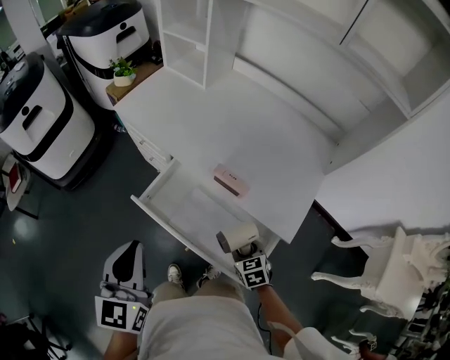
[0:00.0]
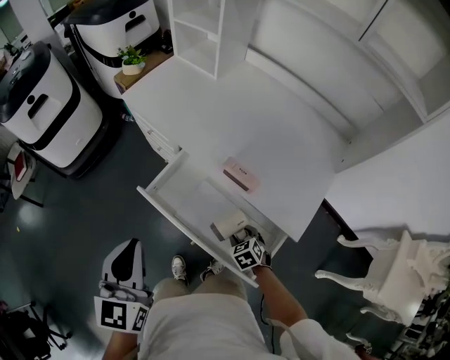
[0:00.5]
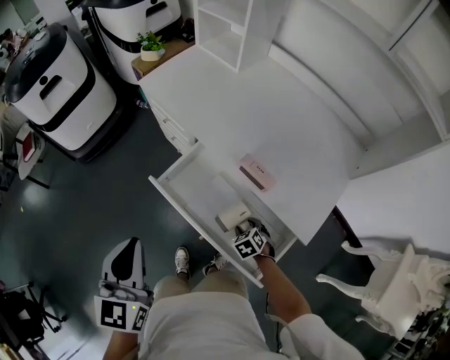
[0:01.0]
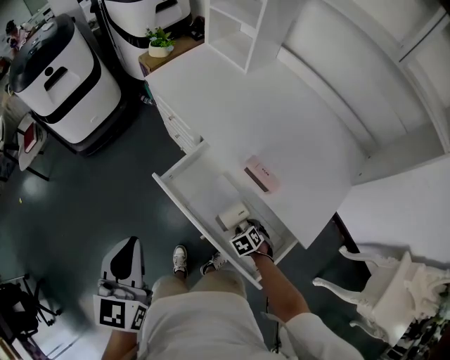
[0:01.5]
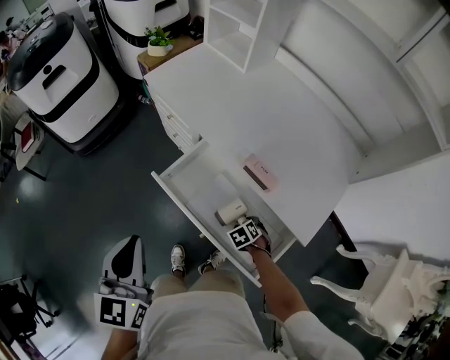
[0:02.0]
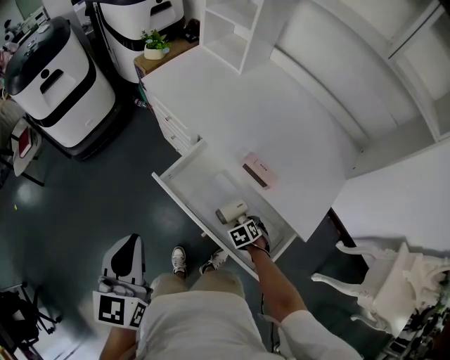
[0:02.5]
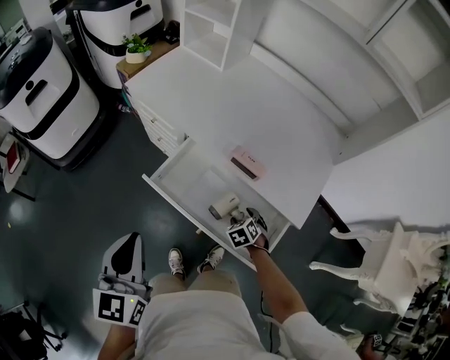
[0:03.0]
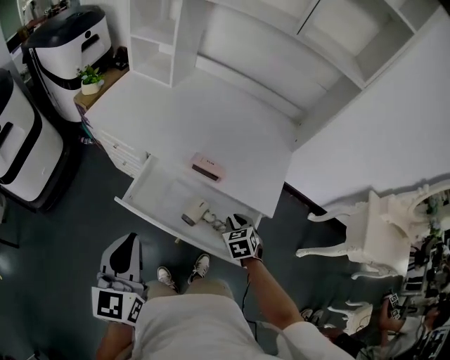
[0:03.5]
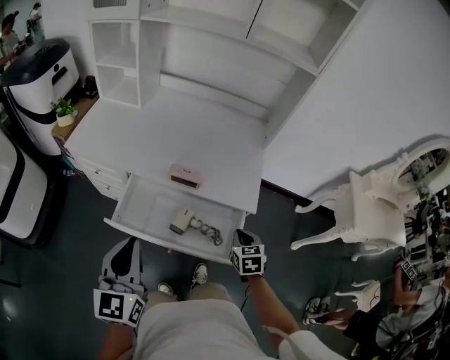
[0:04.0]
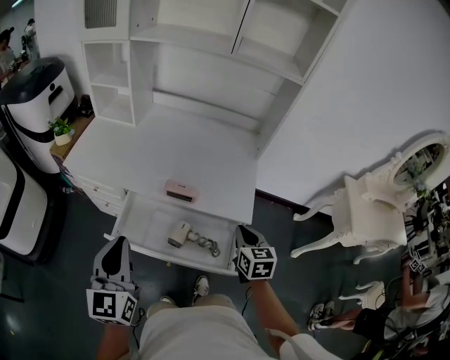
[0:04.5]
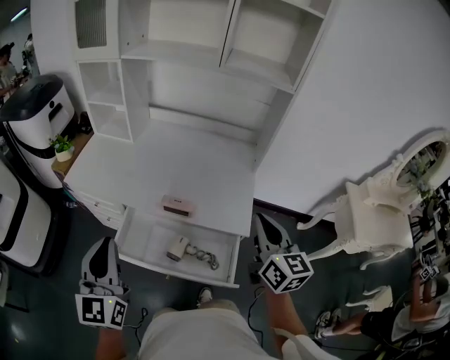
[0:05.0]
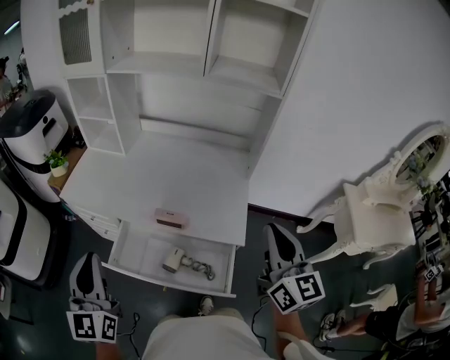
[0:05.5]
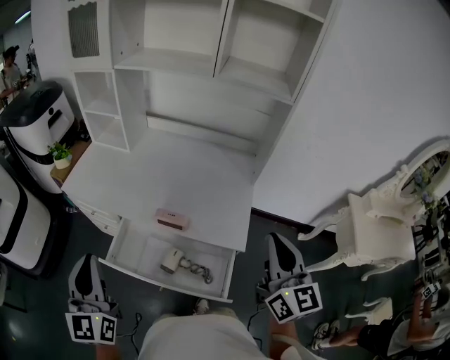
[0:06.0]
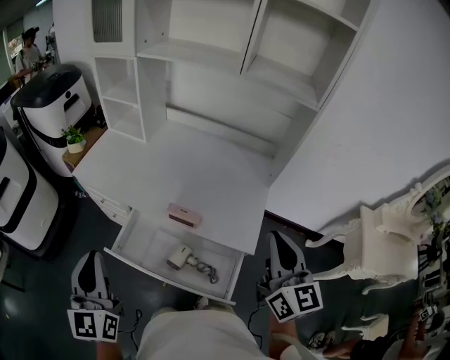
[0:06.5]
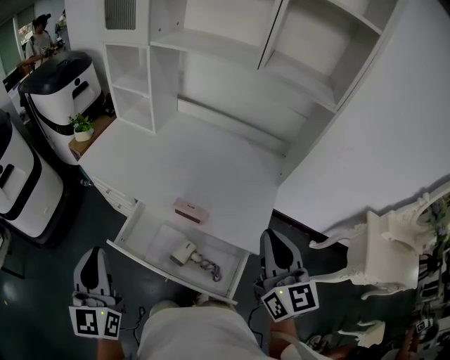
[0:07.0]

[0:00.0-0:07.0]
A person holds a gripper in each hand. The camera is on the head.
0:00.0 to 0:02.0: The right gripper goes about 15 cm downward, and rotates roughly 30 degrees; the left gripper shifts by some 5 cm.
0:02.0 to 0:03.5: The left gripper changes its angle by about 20 degrees. The right gripper is displaced upward by approximately 15 cm, changes its angle by about 40 degrees, and closes.
0:03.5 to 0:05.0: The right gripper heads upward, covering about 35 cm, and angles its fingers upward, by approximately 50 degrees. Meanwhile the left gripper shifts roughly 10 cm upward and forward.

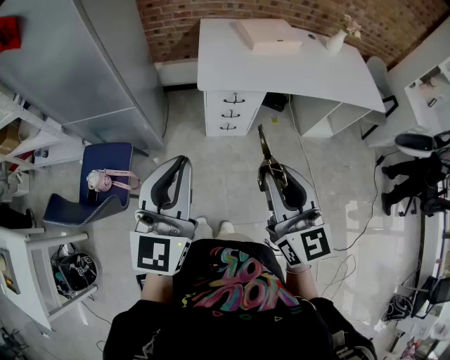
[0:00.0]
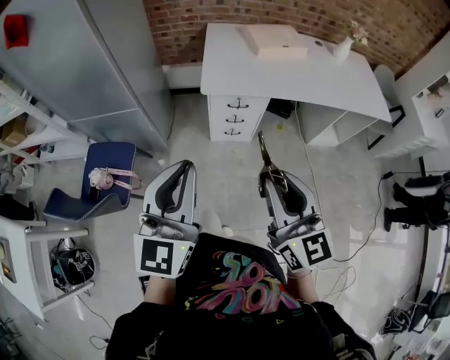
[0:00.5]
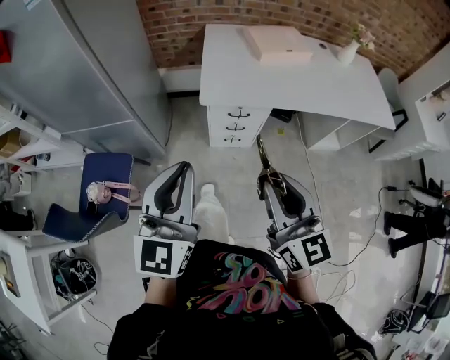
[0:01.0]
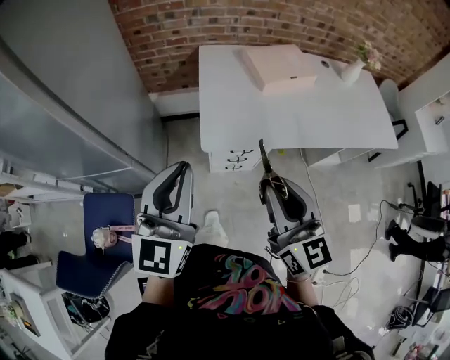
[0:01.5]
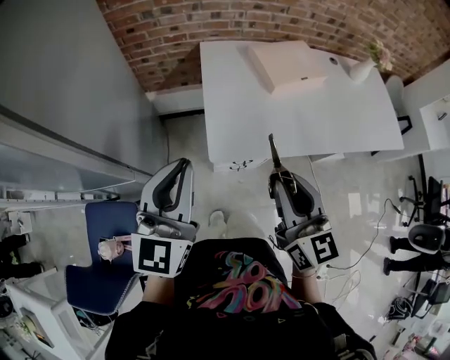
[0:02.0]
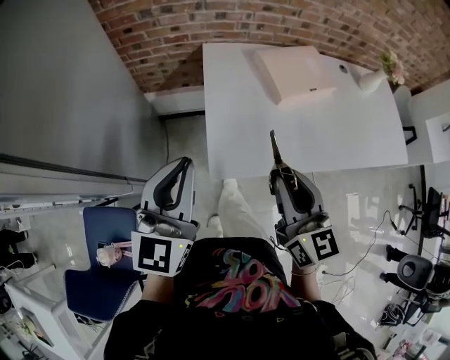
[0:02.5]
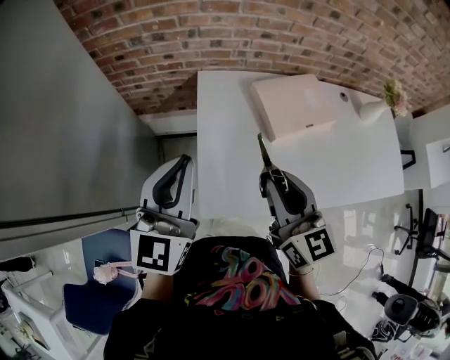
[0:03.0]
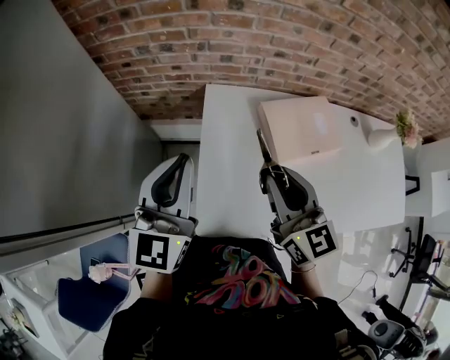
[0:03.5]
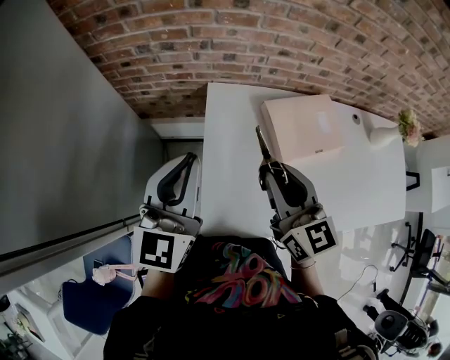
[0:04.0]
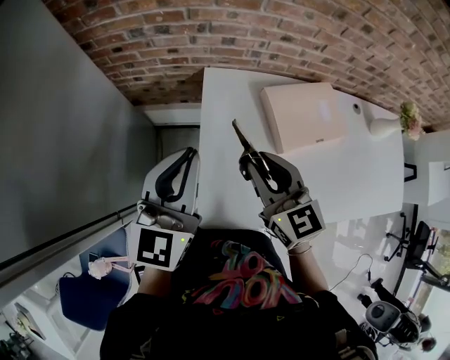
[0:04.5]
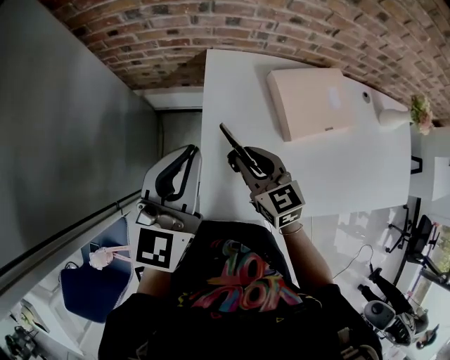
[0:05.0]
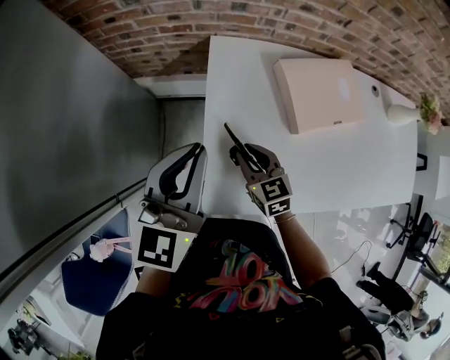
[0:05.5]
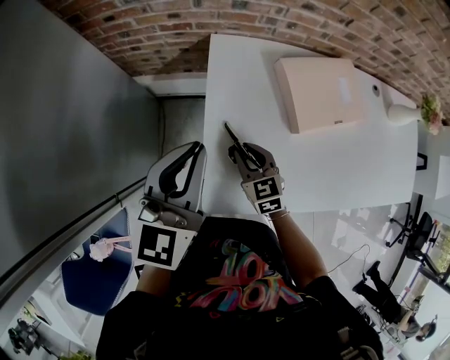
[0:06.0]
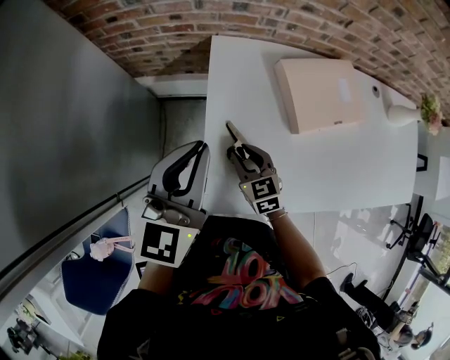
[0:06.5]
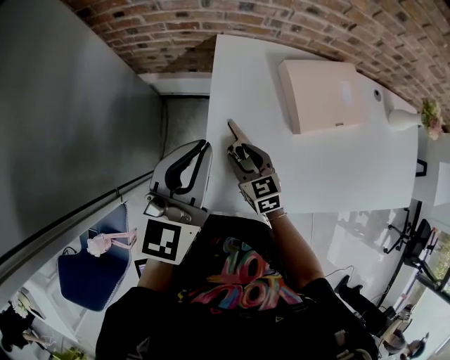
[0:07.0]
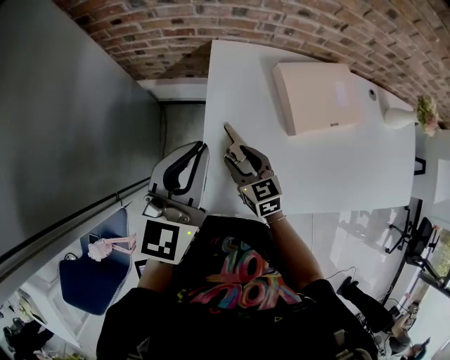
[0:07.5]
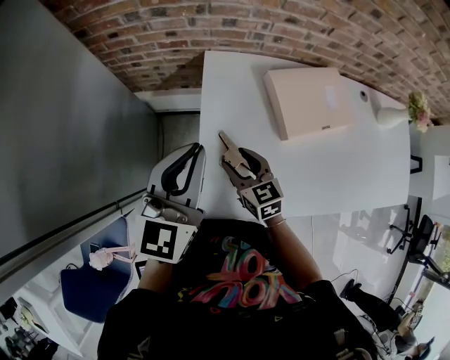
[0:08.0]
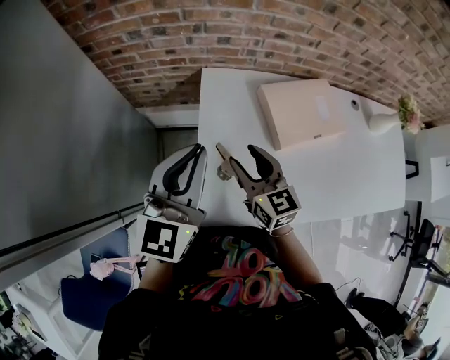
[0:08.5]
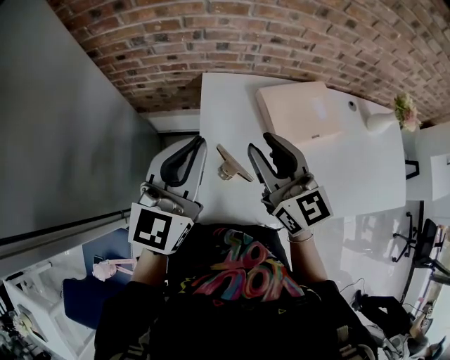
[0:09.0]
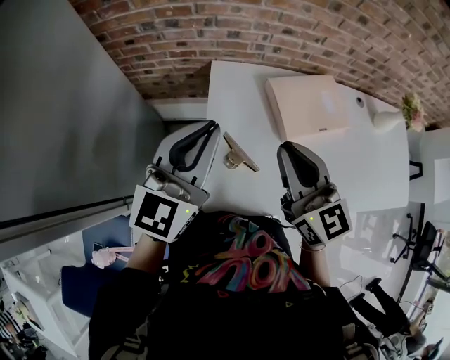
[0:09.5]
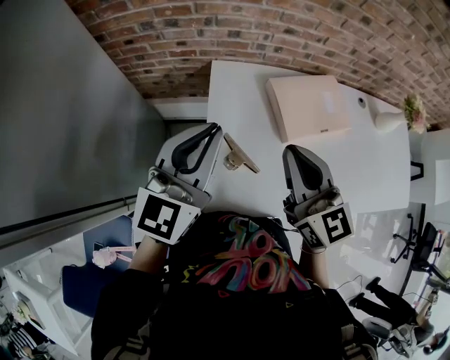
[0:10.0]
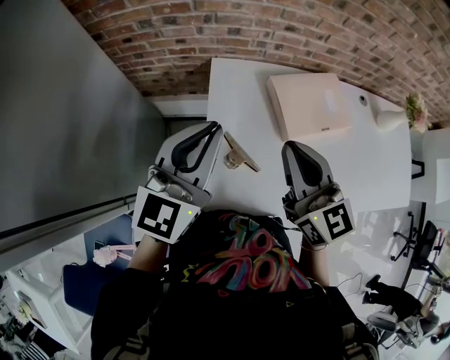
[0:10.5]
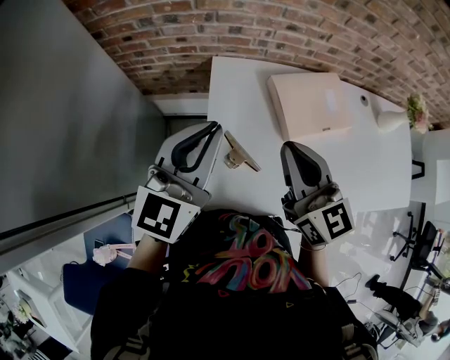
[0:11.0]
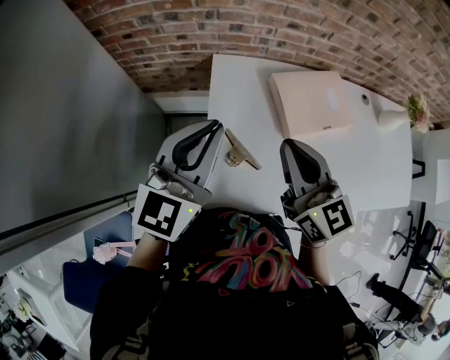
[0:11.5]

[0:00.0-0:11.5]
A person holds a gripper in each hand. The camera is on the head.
0:00.0 to 0:02.0: The pair of grippers is taken forward, approximately 40 cm.
0:02.0 to 0:04.0: Both grippers move forward, approximately 35 cm.
0:04.0 to 0:06.0: The left gripper shifts approximately 10 cm downward. The right gripper travels downward by some 30 cm, and rotates roughly 30 degrees.
0:06.0 to 0:07.5: The right gripper opens its fingers.
0:07.5 to 0:09.5: The left gripper is displaced upward by some 10 cm, while the right gripper goes some 30 cm upward, turns by approximately 30 degrees, and closes its fingers.
0:09.5 to 0:11.5: The grippers stay close to where they were, moving slightly.

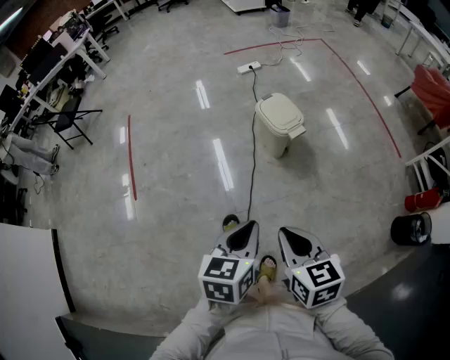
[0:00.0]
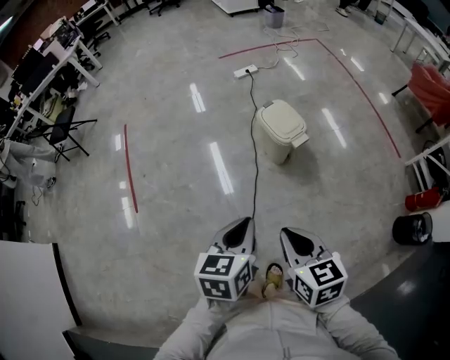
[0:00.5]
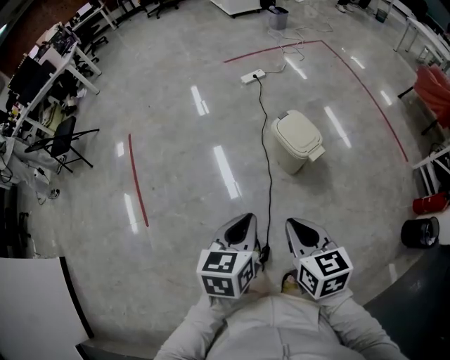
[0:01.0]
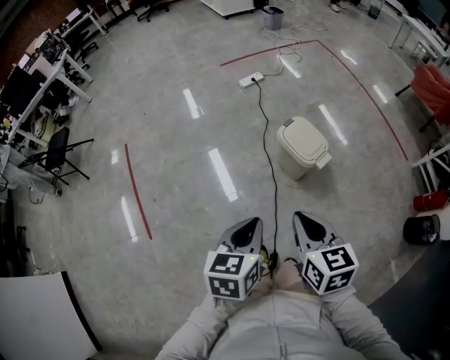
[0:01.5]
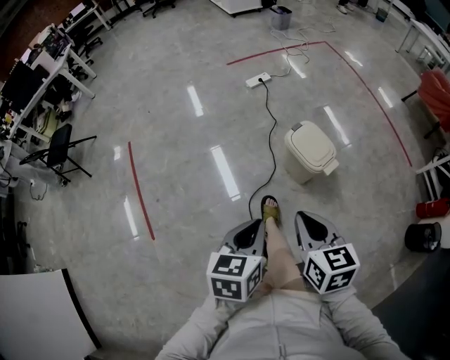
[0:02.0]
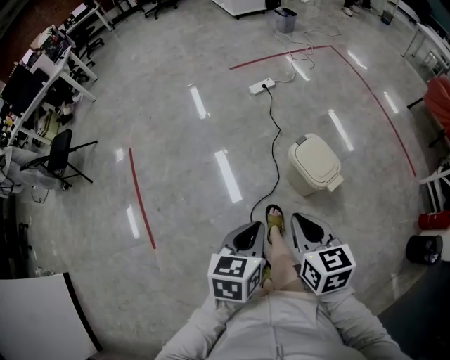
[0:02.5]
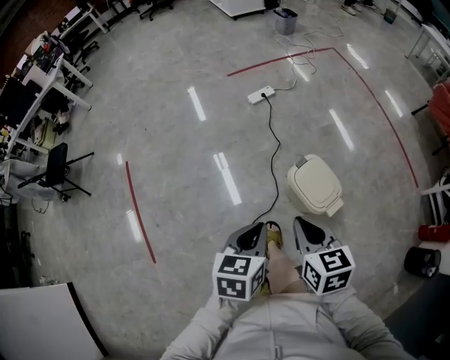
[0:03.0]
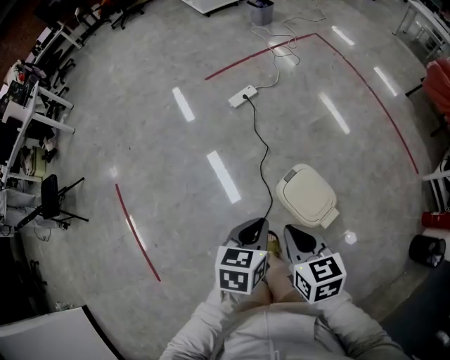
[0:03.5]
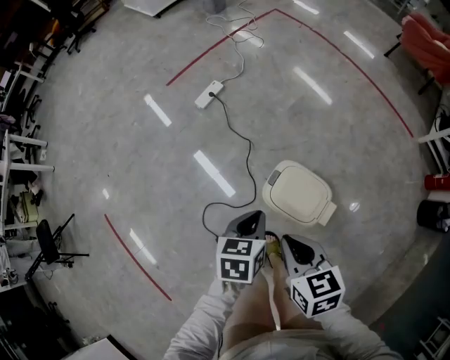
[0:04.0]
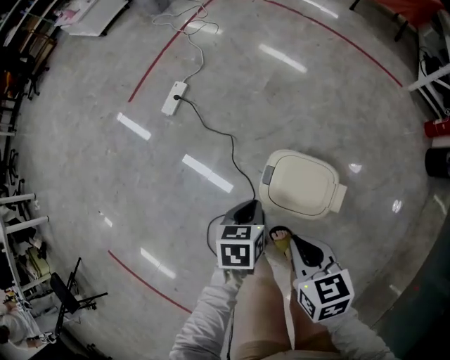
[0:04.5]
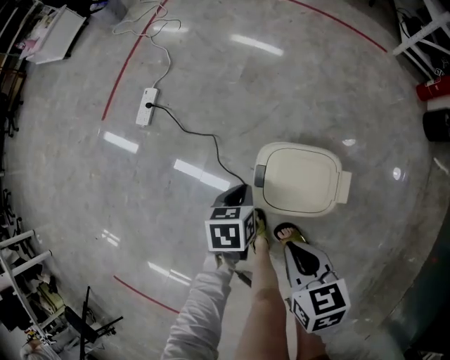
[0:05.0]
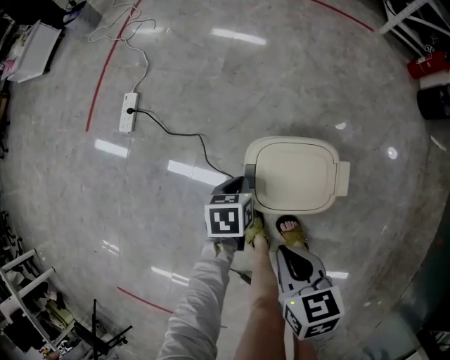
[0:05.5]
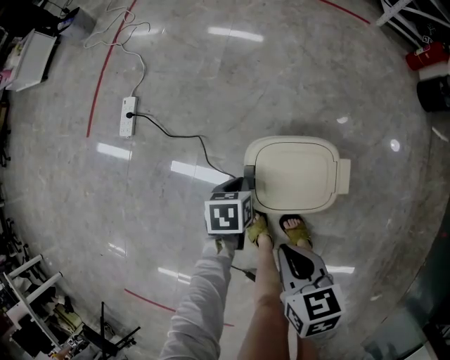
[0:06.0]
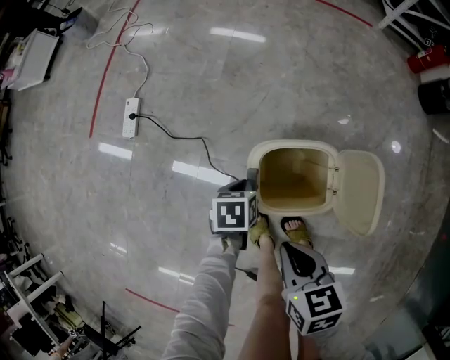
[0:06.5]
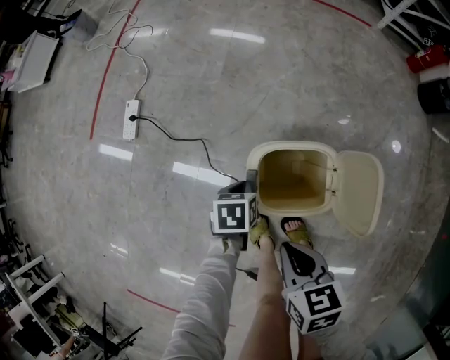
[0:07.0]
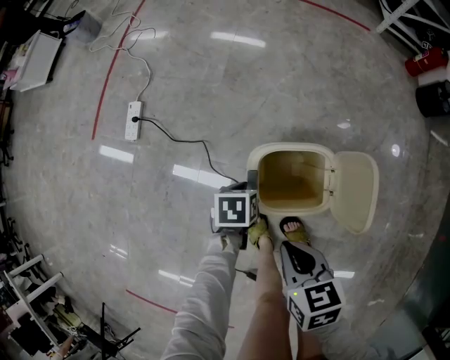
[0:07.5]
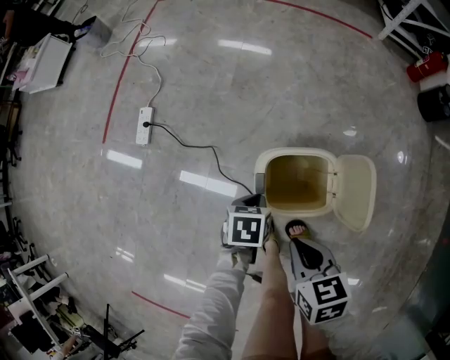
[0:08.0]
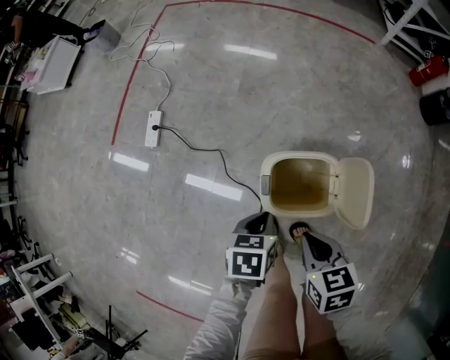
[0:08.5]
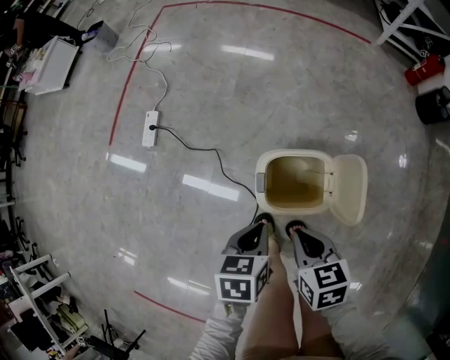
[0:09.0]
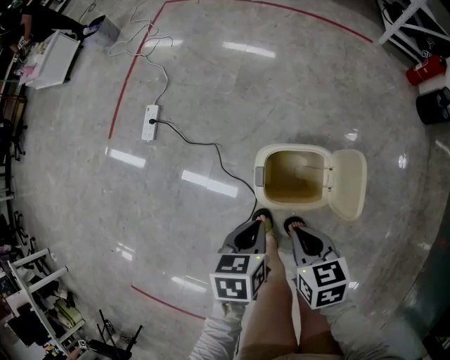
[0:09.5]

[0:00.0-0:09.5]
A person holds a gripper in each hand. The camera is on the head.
0:00.0 to 0:02.0: Both grippers travel together forward and to the left, approximately 30 cm.
0:02.0 to 0:04.0: The grippers both shift forward by about 40 cm. The left gripper turns by roughly 20 degrees.
0:04.0 to 0:05.5: The right gripper heads downward, covering about 20 cm, and rotates about 40 degrees. The left gripper is displaced downward by some 30 cm, and rotates some 30 degrees.
0:05.5 to 0:07.5: The grippers make only small movements.
0:07.5 to 0:09.5: The left gripper is displaced upward and backward by about 20 cm.
